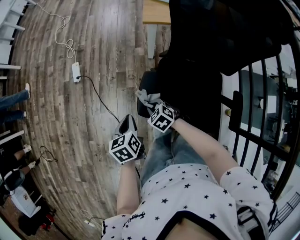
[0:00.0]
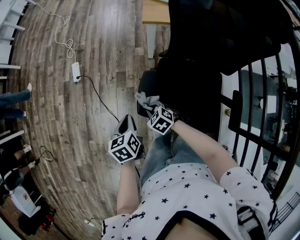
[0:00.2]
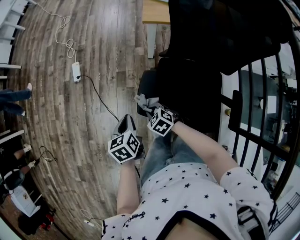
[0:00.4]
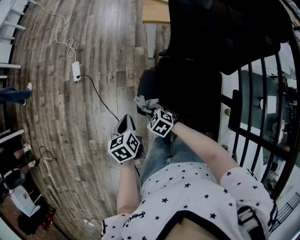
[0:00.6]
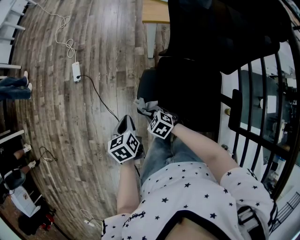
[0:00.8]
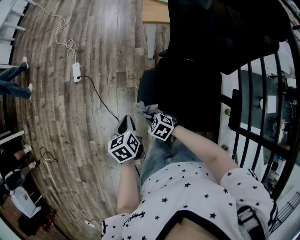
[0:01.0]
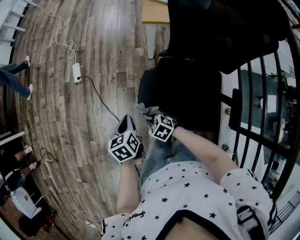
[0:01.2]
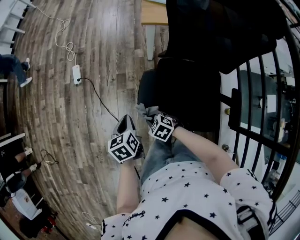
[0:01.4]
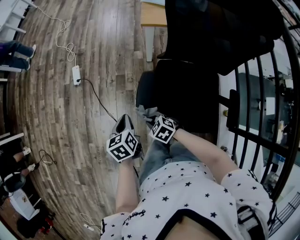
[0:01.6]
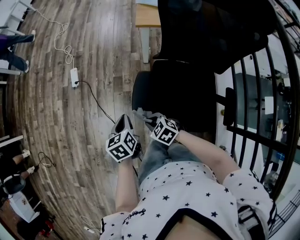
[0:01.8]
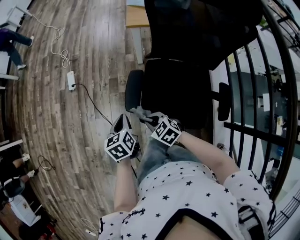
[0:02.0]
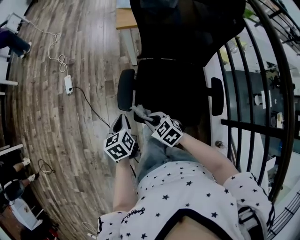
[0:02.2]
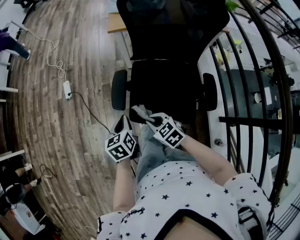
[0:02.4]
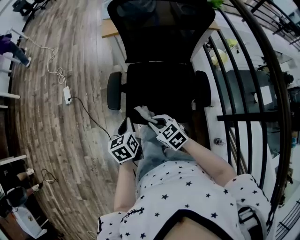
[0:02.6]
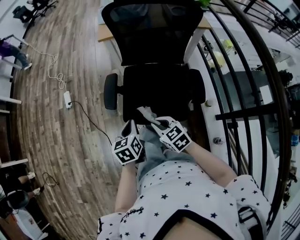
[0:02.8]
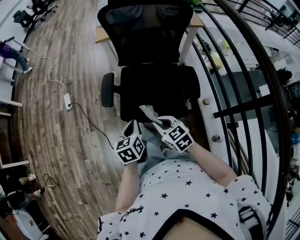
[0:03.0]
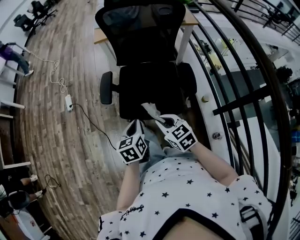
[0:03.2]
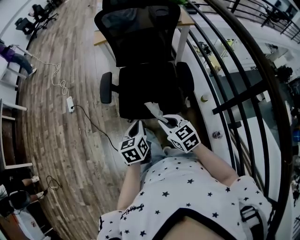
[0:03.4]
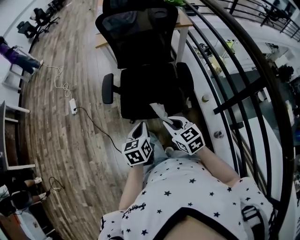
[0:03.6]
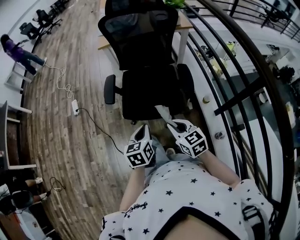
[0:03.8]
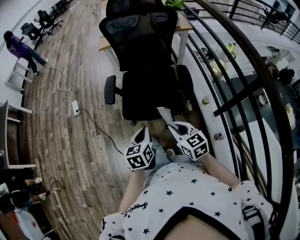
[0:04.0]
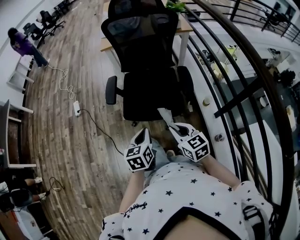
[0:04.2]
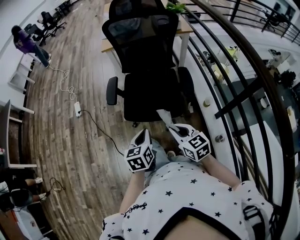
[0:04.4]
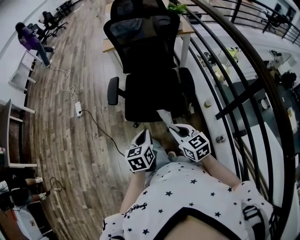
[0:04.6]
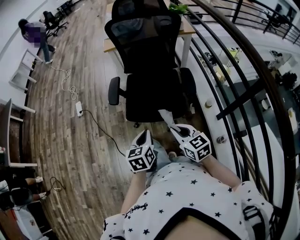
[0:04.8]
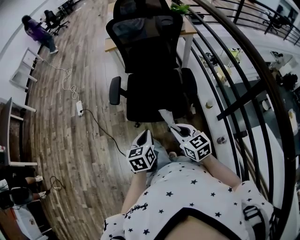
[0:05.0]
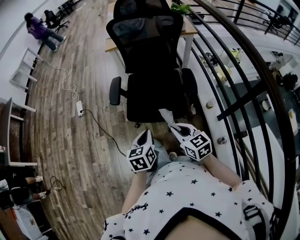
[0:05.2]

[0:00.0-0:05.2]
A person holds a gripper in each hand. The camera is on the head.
0:00.0 to 0:01.8: The right gripper shifts approximately 5 cm backward.
0:01.8 to 0:03.4: The right gripper ends up some 35 cm from where it was, and rotates some 40 degrees. Meanwhile the left gripper shifts by roughly 35 cm, and changes its angle by roughly 20 degrees.
0:03.4 to 0:05.2: Both grippers move backward, roughly 5 cm.

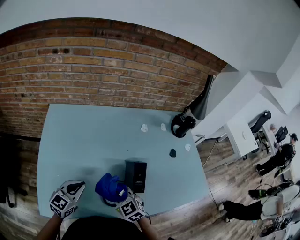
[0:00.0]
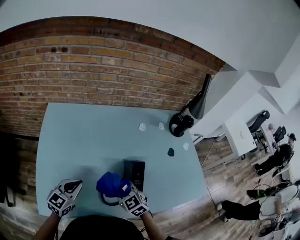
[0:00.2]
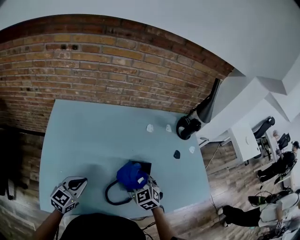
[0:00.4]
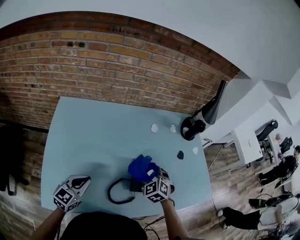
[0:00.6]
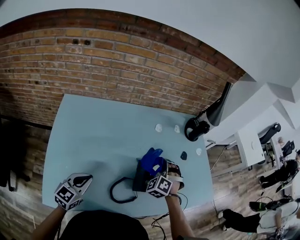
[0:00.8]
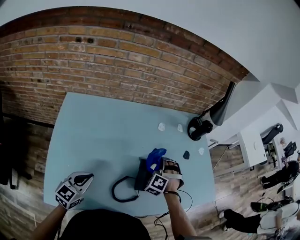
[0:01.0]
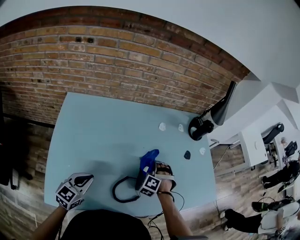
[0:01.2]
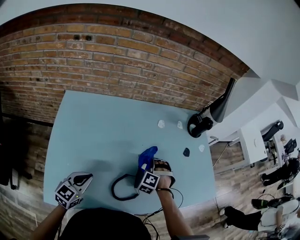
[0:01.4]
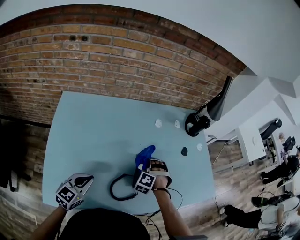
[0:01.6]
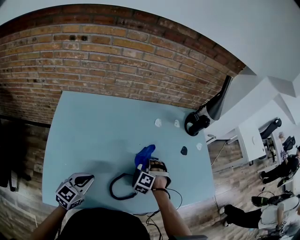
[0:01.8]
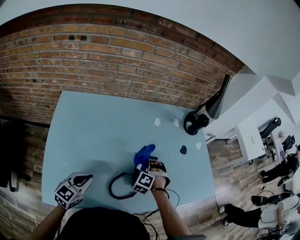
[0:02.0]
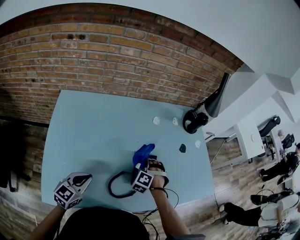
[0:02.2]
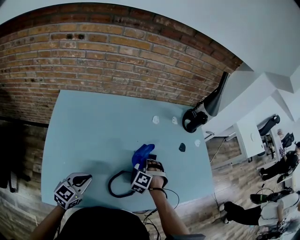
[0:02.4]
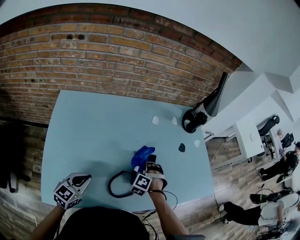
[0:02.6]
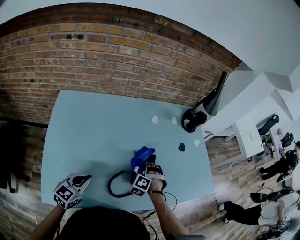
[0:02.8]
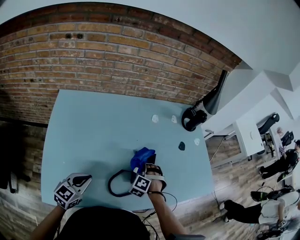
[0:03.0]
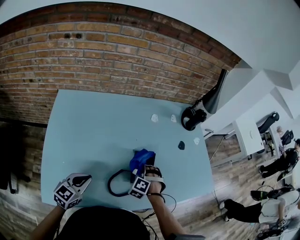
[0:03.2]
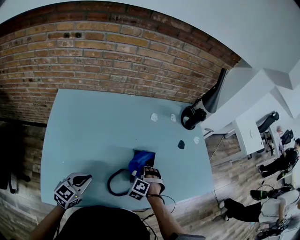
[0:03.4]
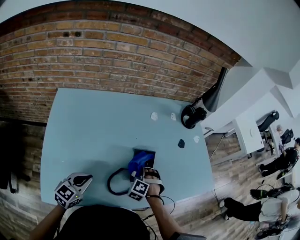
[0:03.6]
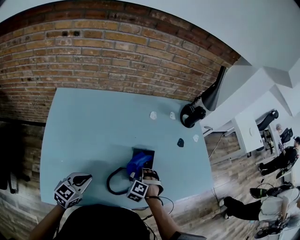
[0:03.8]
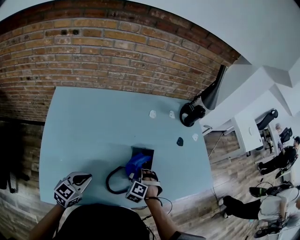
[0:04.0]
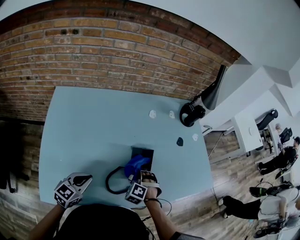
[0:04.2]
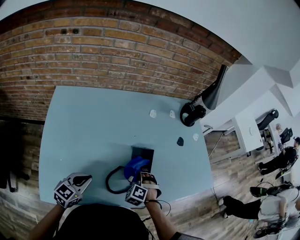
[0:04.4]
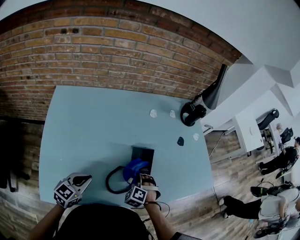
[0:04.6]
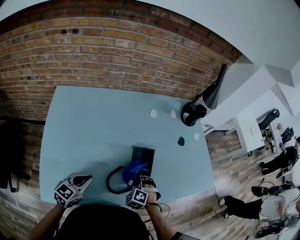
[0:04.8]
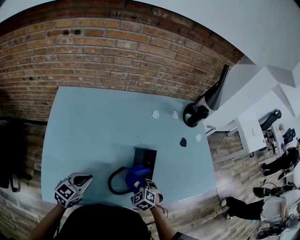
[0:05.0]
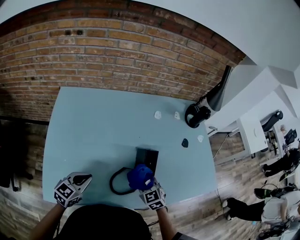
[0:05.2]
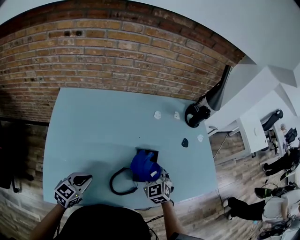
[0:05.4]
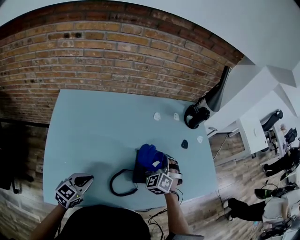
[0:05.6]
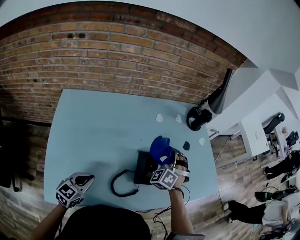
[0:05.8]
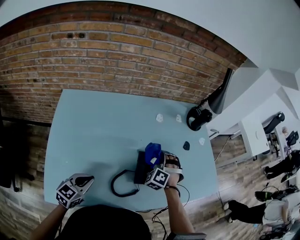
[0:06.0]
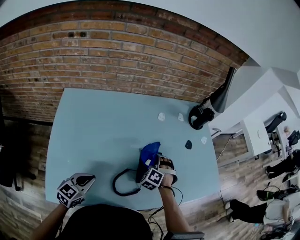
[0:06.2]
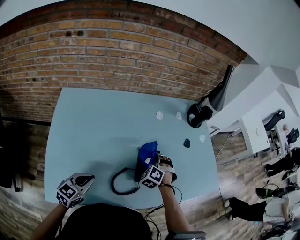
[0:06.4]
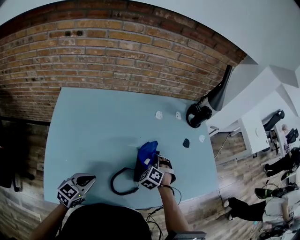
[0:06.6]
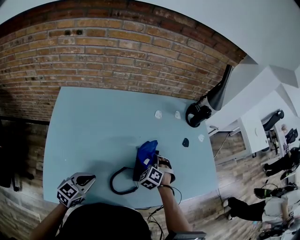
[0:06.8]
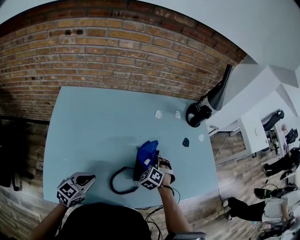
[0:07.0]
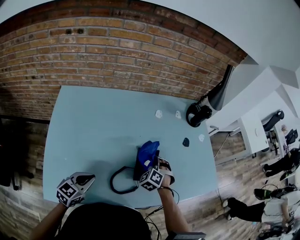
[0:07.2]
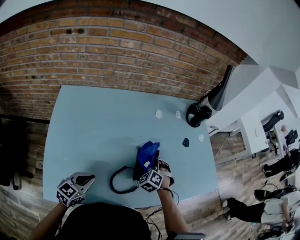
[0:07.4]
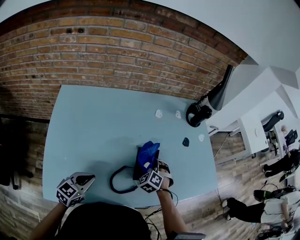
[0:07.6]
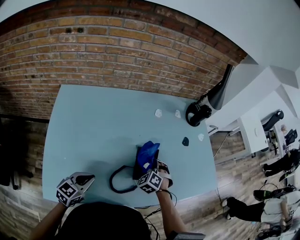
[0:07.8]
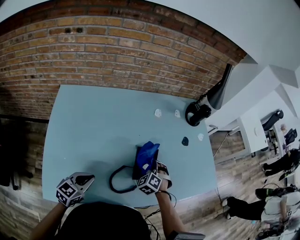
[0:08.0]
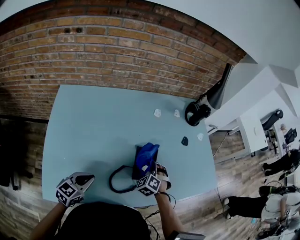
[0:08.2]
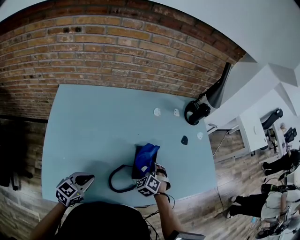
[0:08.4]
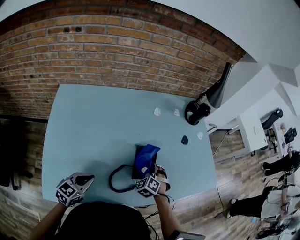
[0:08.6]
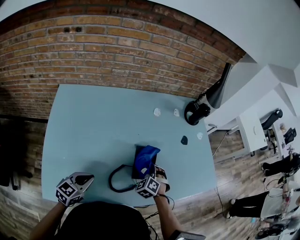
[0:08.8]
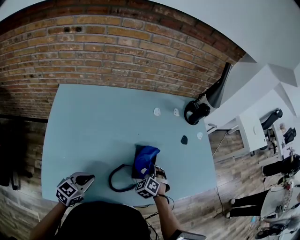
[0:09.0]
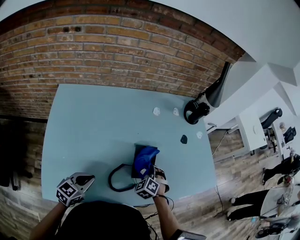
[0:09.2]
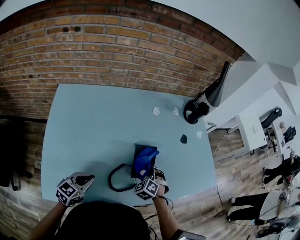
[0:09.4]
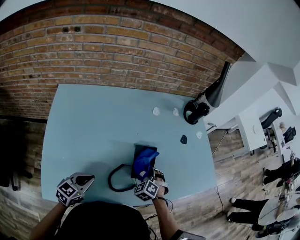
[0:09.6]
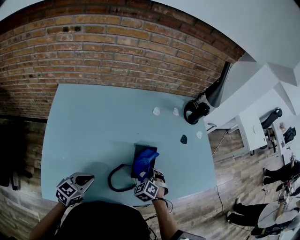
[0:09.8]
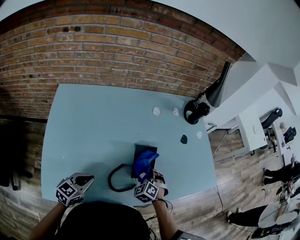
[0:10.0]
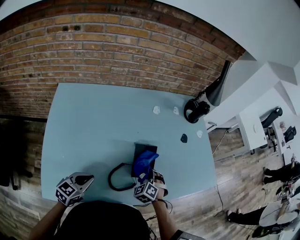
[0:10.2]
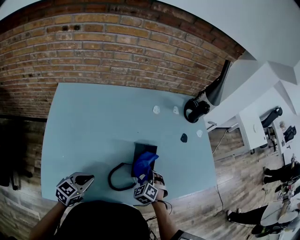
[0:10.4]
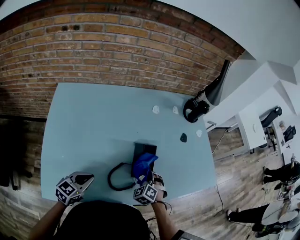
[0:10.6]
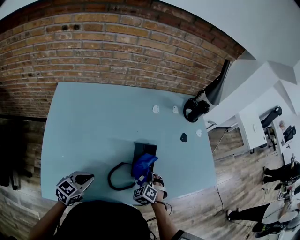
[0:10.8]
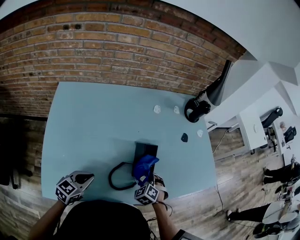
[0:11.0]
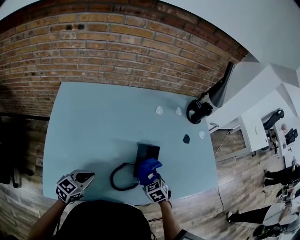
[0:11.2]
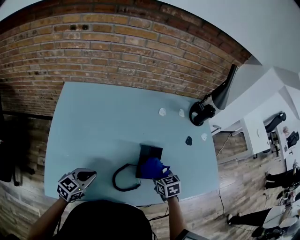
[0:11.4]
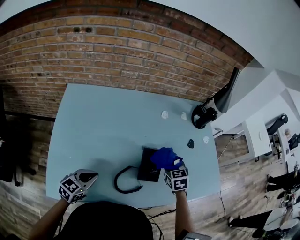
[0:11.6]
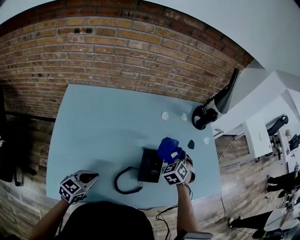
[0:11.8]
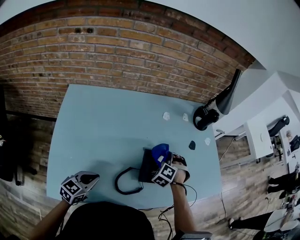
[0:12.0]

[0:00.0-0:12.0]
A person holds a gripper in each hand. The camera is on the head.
0:00.0 to 0:01.6: The right gripper moves approximately 20 cm, and turns by some 70 degrees.
0:01.6 to 0:03.0: The grippers stay close to where they were, moving slightly.
0:03.0 to 0:04.4: The right gripper shifts roughly 5 cm backward.
0:04.4 to 0:06.0: The right gripper is displaced forward and upward by approximately 15 cm.
0:06.0 to 0:07.6: The right gripper heads downward, covering roughly 5 cm, and turns by some 20 degrees.
0:07.6 to 0:09.0: There are only small adjustments of the grippers.
0:09.0 to 0:10.4: There are only small adjustments of the grippers.
0:10.4 to 0:12.0: The right gripper shifts about 15 cm forward and upward.

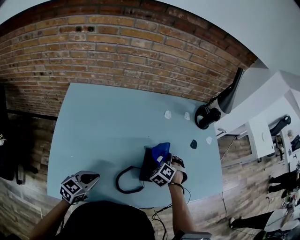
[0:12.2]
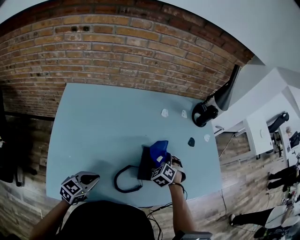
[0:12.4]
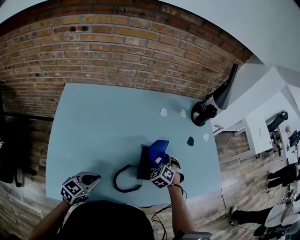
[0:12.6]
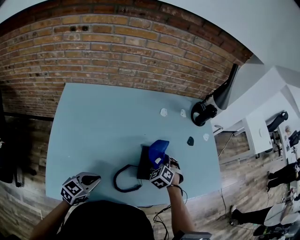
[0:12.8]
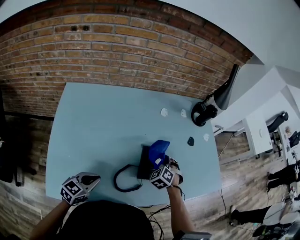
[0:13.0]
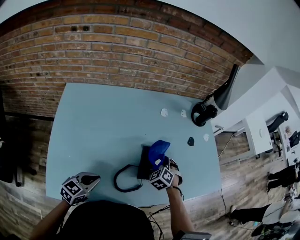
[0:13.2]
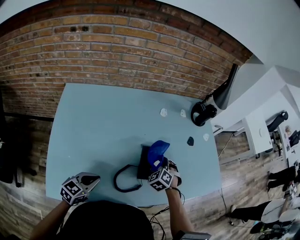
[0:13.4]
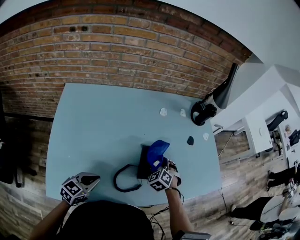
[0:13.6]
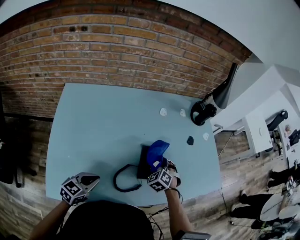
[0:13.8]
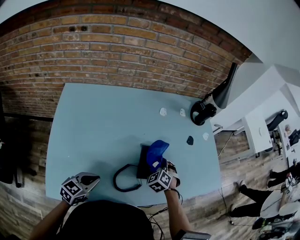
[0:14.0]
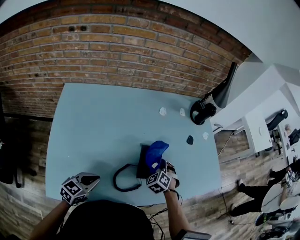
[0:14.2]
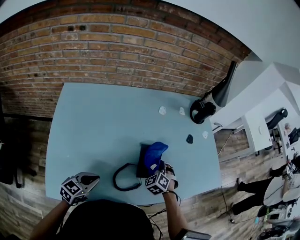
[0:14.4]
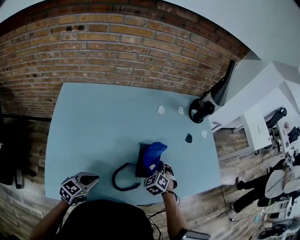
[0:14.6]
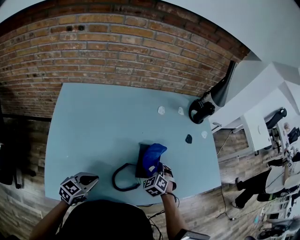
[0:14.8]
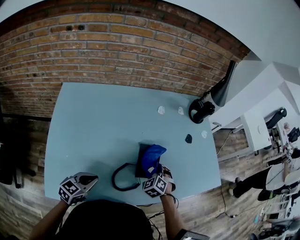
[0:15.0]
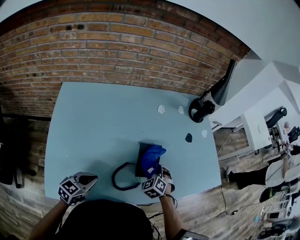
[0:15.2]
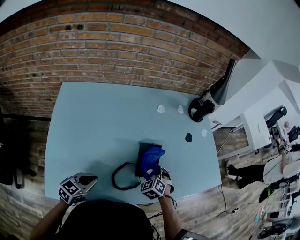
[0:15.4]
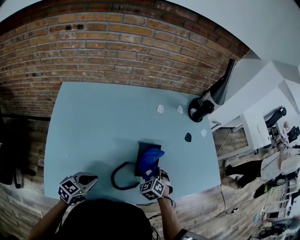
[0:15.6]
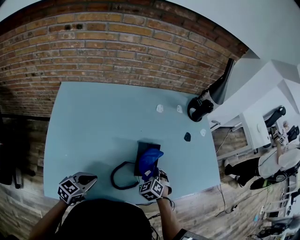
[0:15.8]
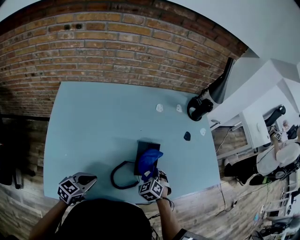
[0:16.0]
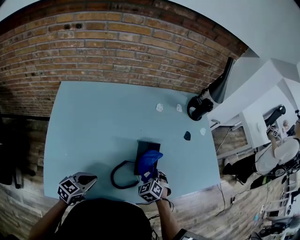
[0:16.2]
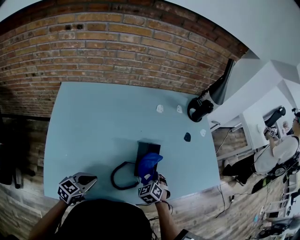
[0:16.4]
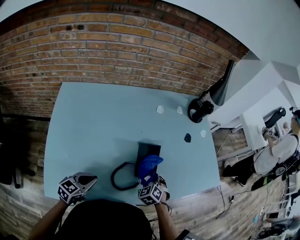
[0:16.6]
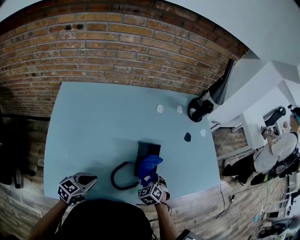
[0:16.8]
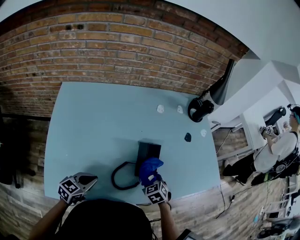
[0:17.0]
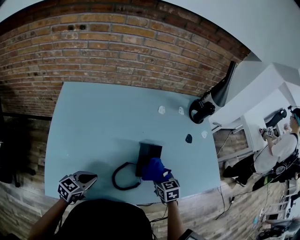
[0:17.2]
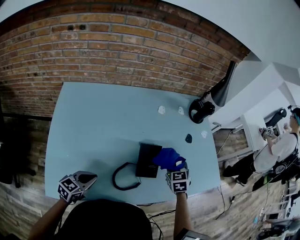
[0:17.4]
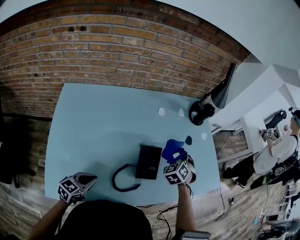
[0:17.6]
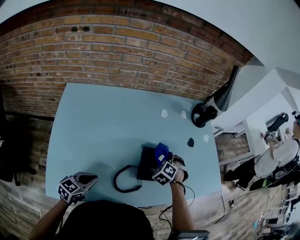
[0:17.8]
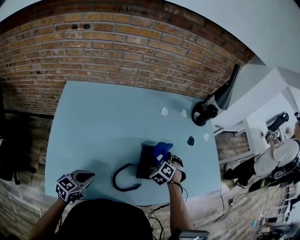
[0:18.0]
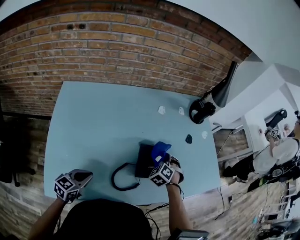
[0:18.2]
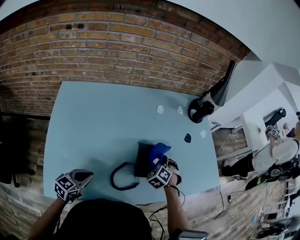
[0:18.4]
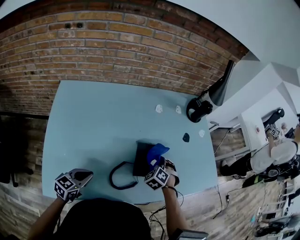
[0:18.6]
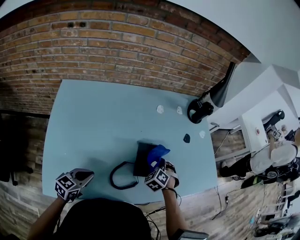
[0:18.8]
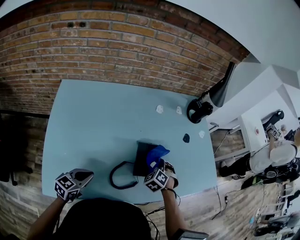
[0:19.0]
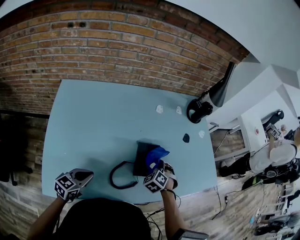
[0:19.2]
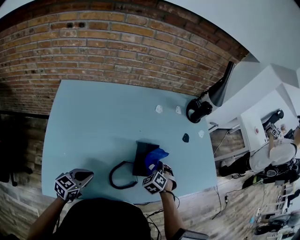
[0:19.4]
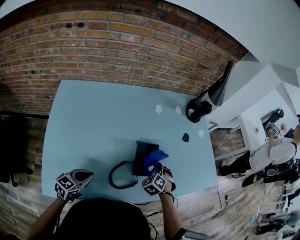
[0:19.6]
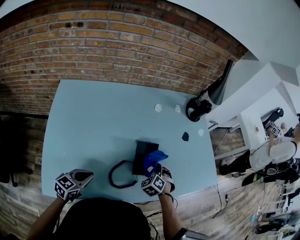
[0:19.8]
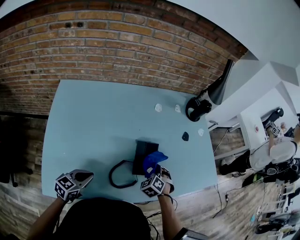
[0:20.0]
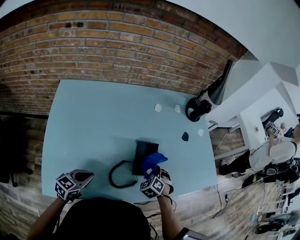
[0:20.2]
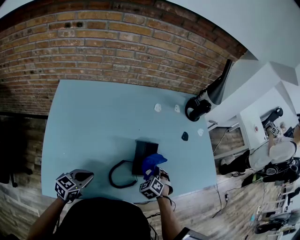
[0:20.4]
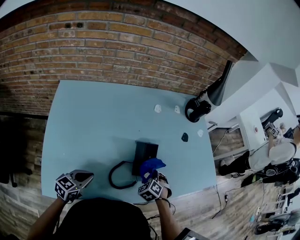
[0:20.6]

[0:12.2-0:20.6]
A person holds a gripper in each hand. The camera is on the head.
0:12.2 to 0:13.6: The grippers make only small movements.
0:13.6 to 0:15.0: There are only small adjustments of the grippers.
0:15.0 to 0:16.4: There are only small adjustments of the grippers.
0:16.4 to 0:17.8: The right gripper shifts some 15 cm forward, and swivels some 20 degrees.
0:17.8 to 0:19.2: The right gripper is displaced backward by roughly 5 cm.
0:19.2 to 0:20.6: The right gripper goes about 5 cm backward.
